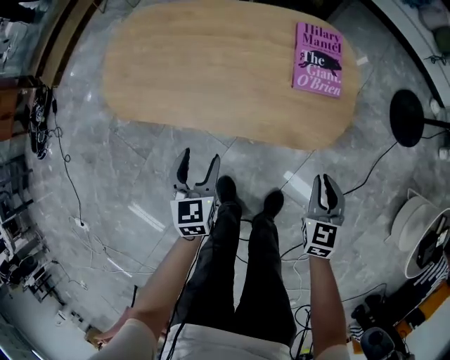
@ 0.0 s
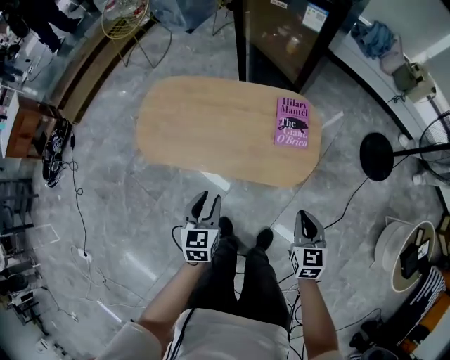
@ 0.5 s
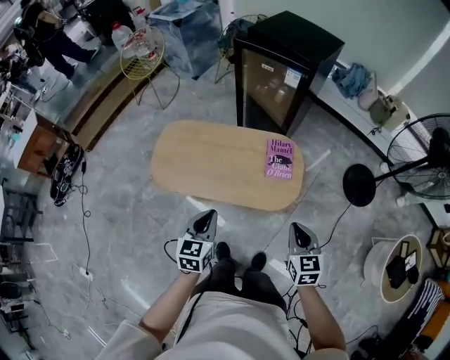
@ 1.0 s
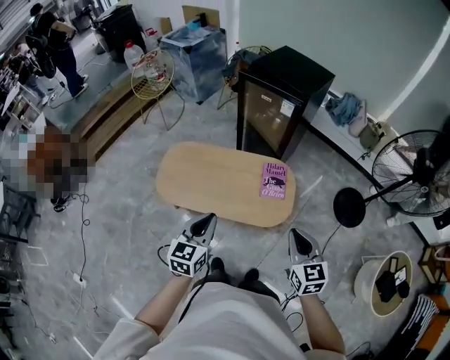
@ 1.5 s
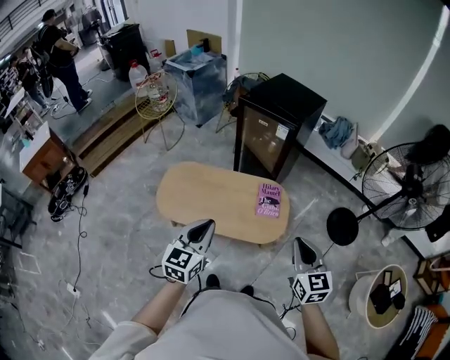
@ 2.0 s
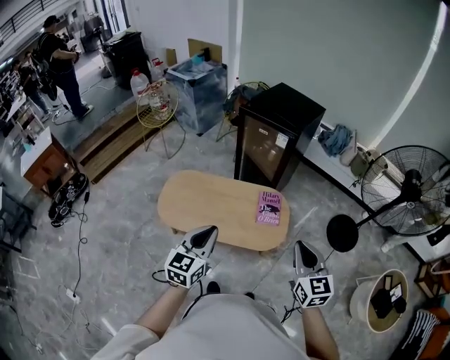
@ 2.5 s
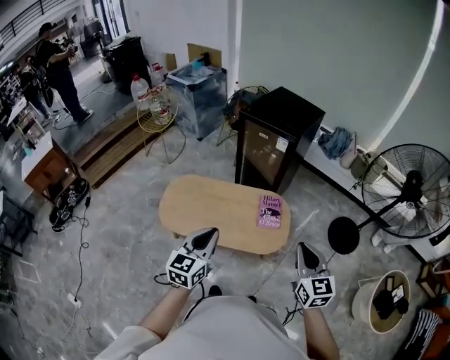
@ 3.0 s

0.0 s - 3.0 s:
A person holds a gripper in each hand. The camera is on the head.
0.0 s - 1.5 s: The two grippers go approximately 50 cm upward. The right gripper rotates about 20 degrees. The left gripper rotates approximately 20 degrees, and closes up.
1.5 s - 3.0 s: The grippers both shift upward by approximately 10 cm.

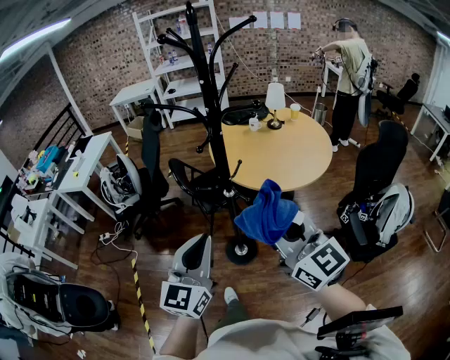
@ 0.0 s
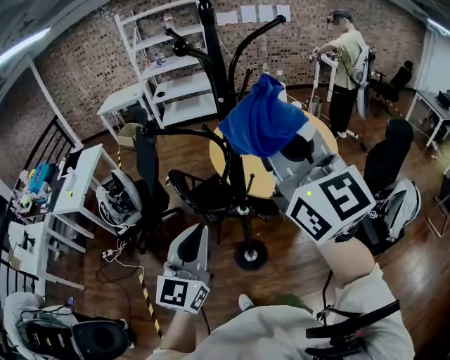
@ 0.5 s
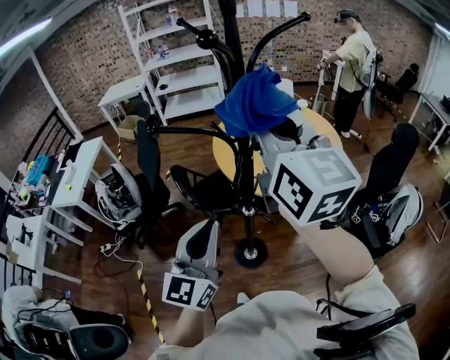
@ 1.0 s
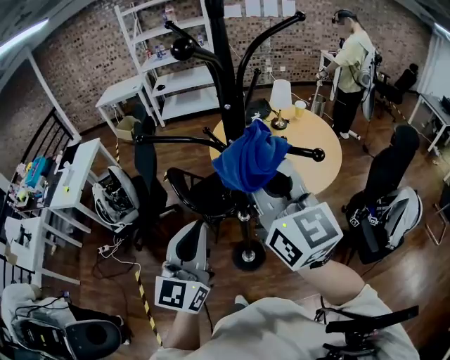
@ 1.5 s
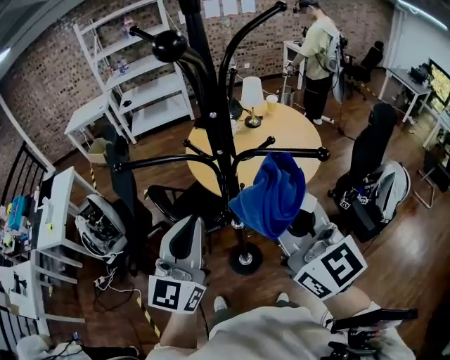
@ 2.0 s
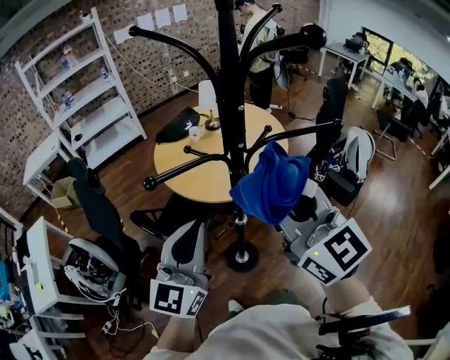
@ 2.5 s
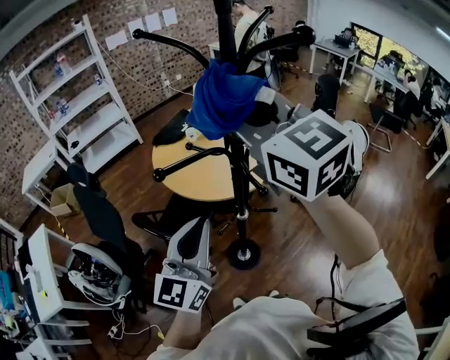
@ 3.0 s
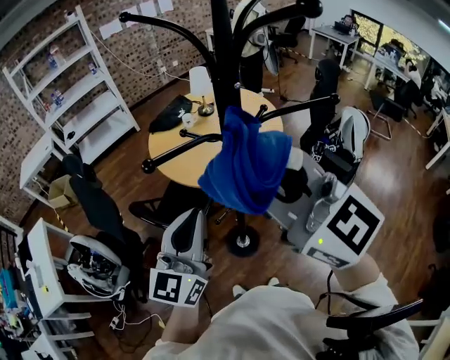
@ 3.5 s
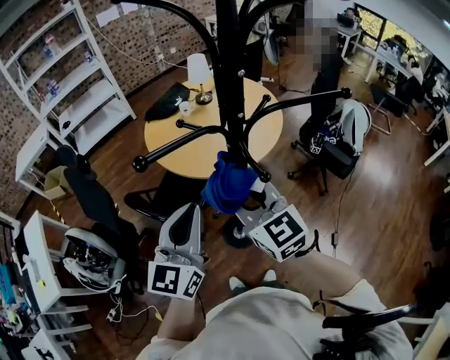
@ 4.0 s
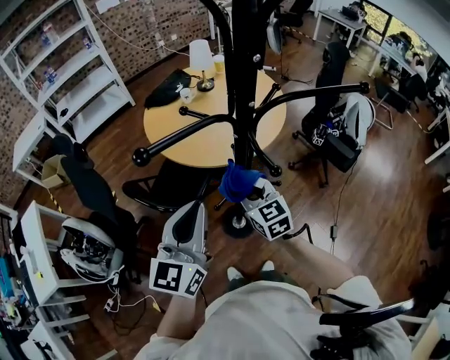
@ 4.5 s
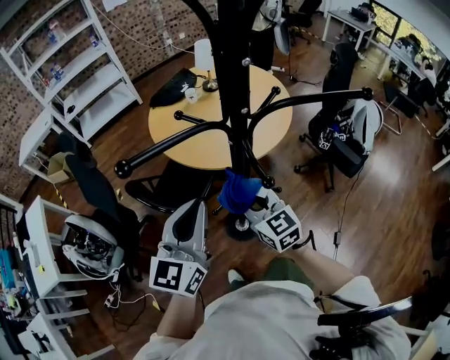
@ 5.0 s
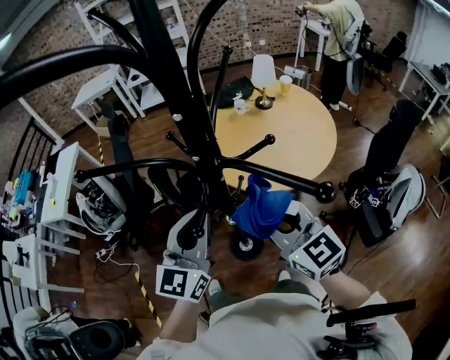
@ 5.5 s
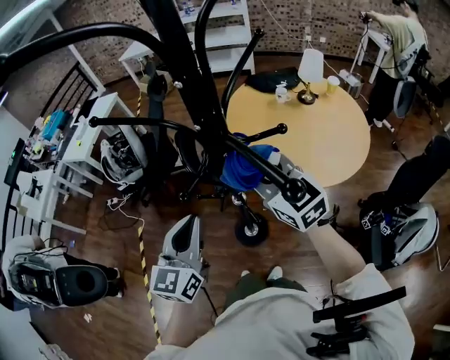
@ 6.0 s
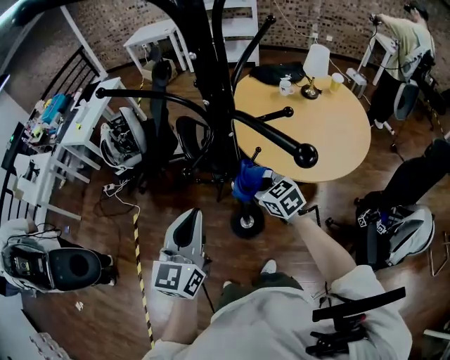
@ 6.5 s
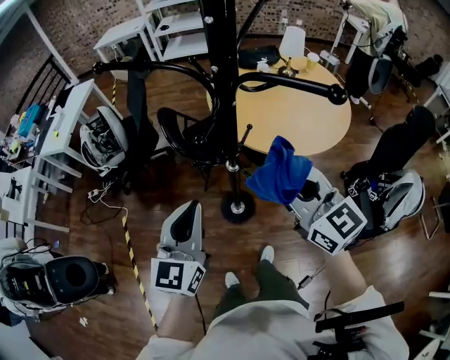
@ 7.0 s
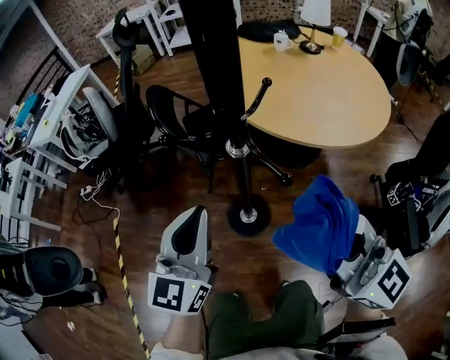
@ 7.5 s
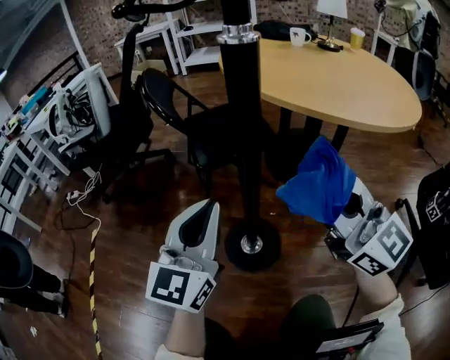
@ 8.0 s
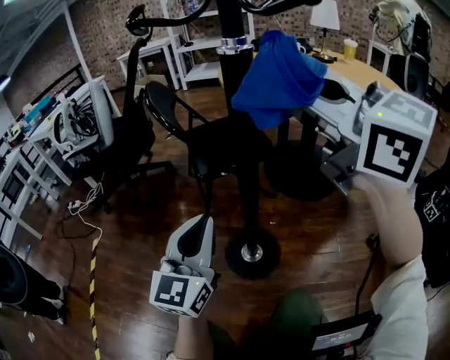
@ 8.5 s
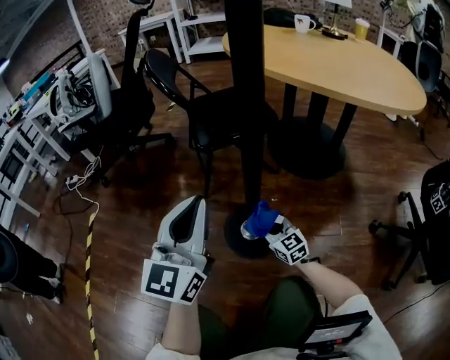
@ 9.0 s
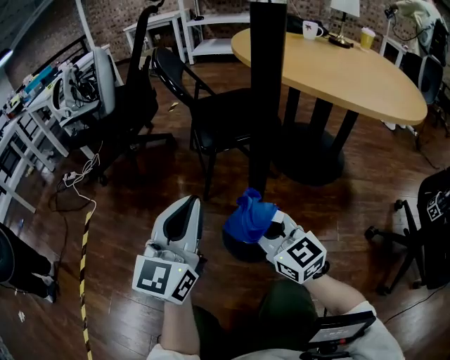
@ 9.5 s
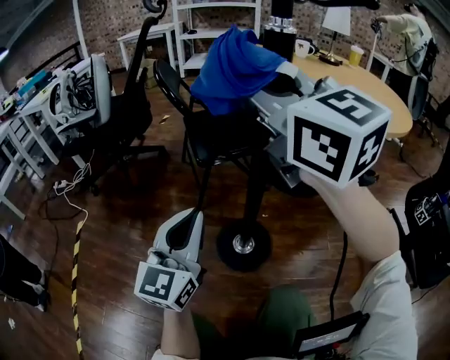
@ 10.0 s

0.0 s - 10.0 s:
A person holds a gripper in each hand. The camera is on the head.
0.0 s - 2.0 s: The left gripper heads forward, covering some 25 cm, while the right gripper goes roughly 20 cm forward and to the left.
2.0 s - 4.0 s: The right gripper is displaced to the left and downward by about 20 cm, and turns by roughly 20 degrees. The left gripper goes some 5 cm to the left, and turns by about 20 degrees.
4.0 s - 6.0 s: The left gripper changes place by approximately 15 cm, and changes its angle by roughly 50 degrees; the right gripper goes downward and returns, some 15 cm each way, and changes its angle by some 50 degrees.
6.0 s - 8.0 s: The left gripper shifts some 50 cm downward, while the right gripper swings up and down, about 50 cm each way, with 2 reversals, and turns by approximately 20 degrees.
8.0 s - 10.0 s: The left gripper is displaced to the left and downward by approximately 10 cm. The right gripper goes up and down, roughly 60 cm each way, reversing 2 times.

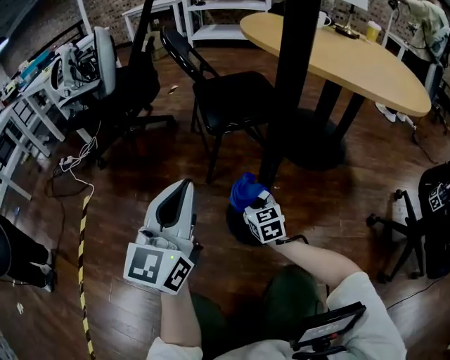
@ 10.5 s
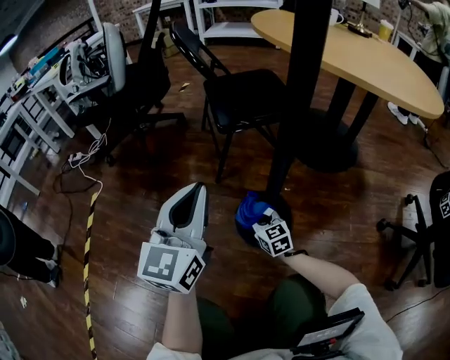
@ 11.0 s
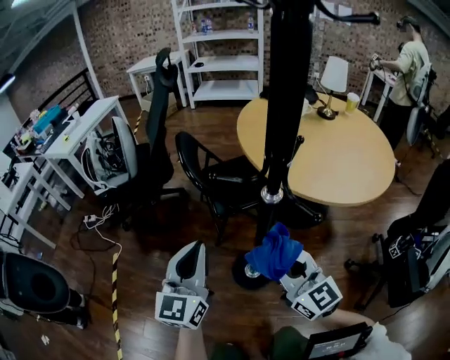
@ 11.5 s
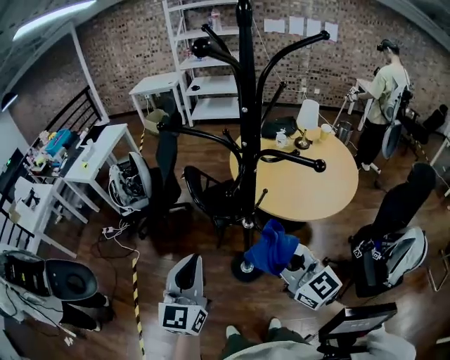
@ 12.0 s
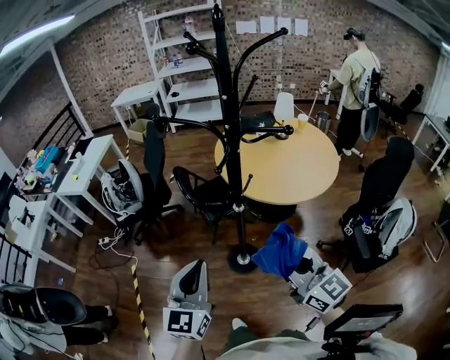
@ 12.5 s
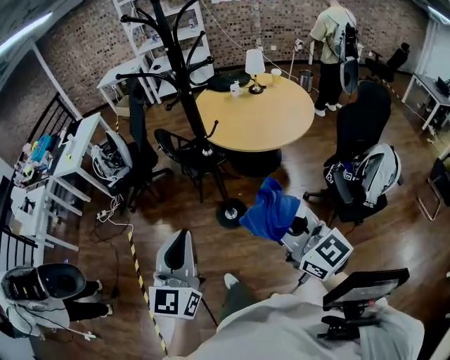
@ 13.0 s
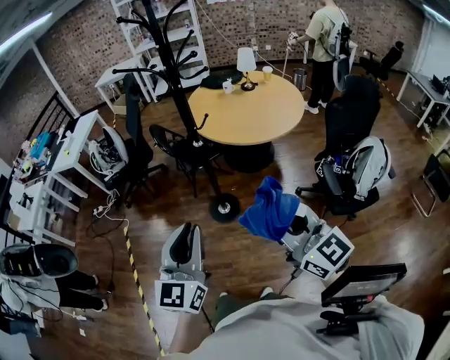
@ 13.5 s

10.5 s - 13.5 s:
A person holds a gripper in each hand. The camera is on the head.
10.5 s - 12.0 s: The grippers both shift upward by approximately 70 cm. The right gripper swivels roughly 30 degrees.
12.0 s - 13.5 s: The grippers both shift backward by about 30 cm.

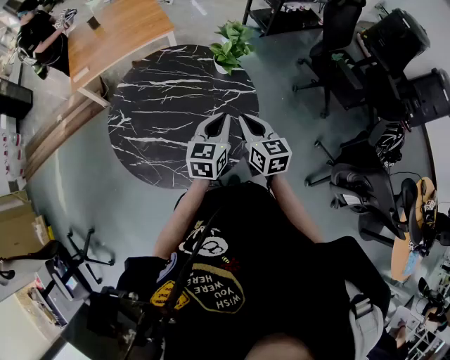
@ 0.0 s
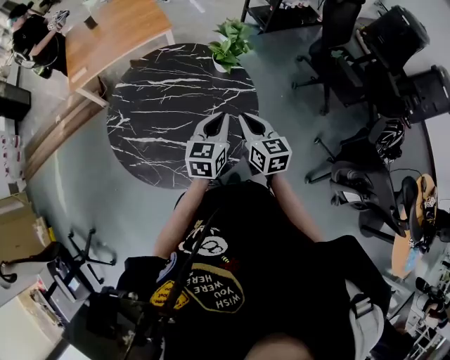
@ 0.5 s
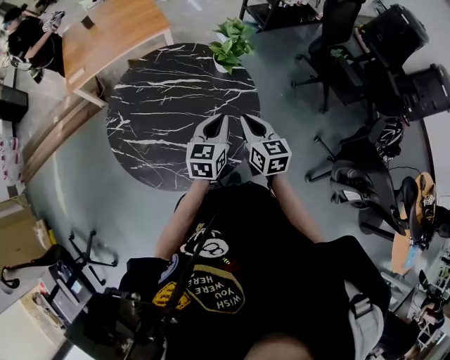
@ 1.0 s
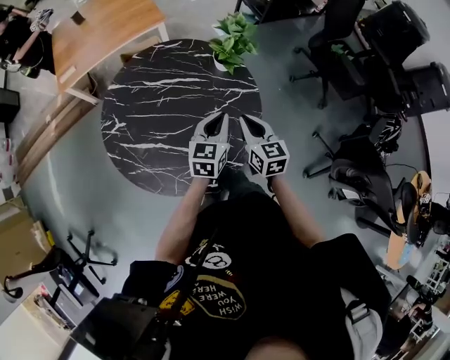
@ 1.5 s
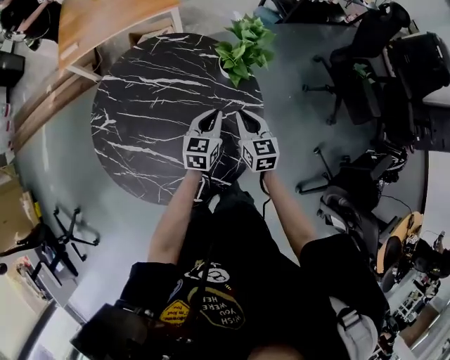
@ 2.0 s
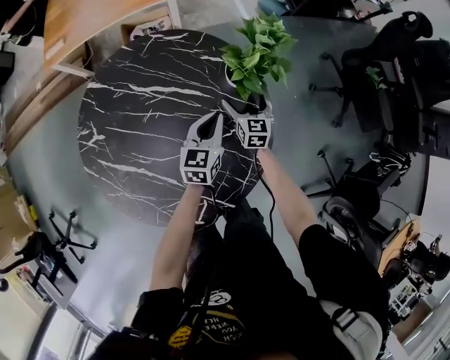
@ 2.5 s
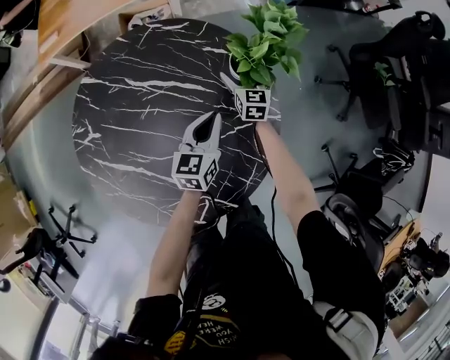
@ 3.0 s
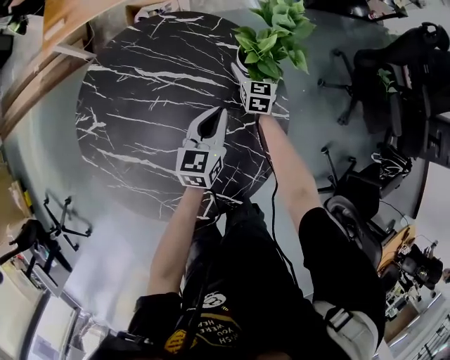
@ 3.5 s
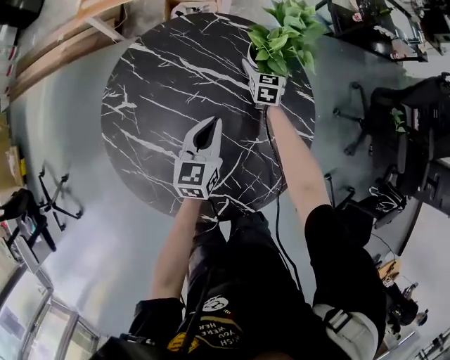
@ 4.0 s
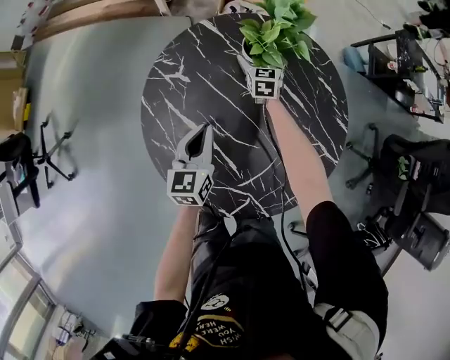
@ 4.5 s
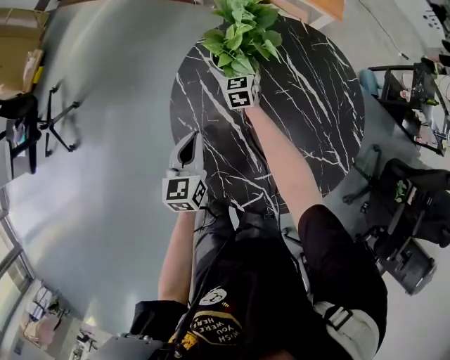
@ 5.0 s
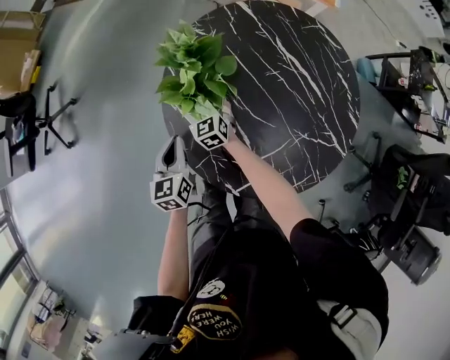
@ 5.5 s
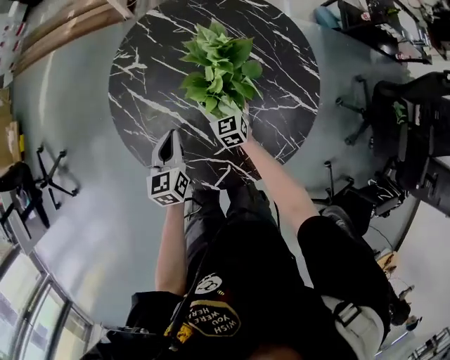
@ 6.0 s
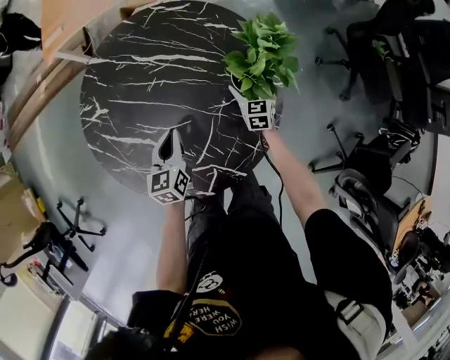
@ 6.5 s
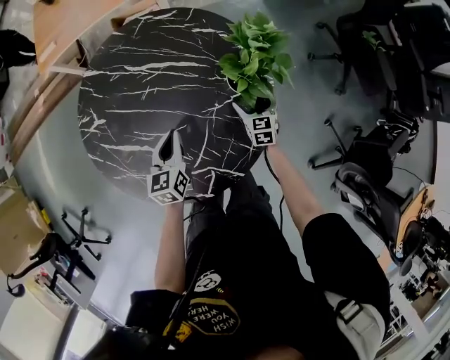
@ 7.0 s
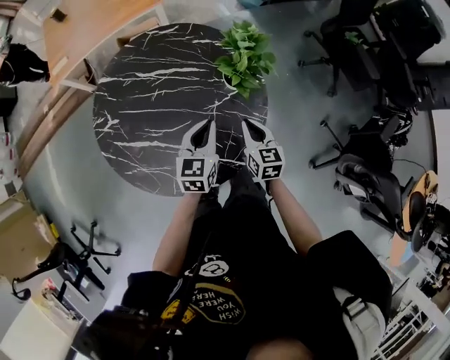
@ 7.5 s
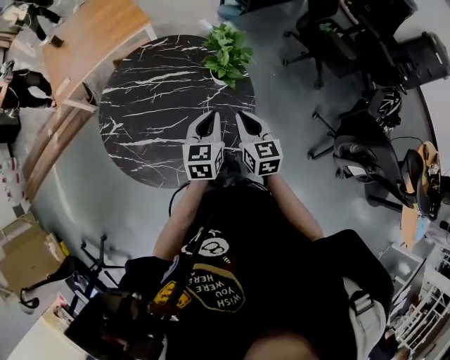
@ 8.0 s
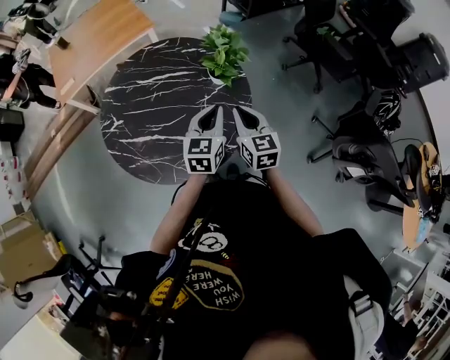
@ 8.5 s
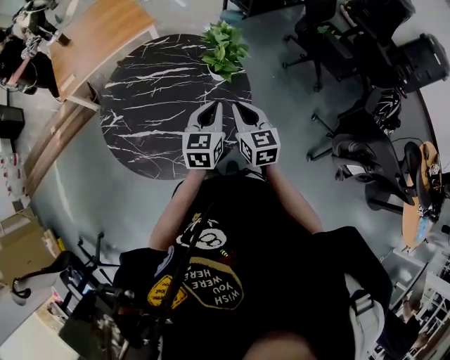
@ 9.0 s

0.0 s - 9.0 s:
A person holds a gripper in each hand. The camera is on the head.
0.0 s - 2.0 s: Both grippers travel together forward and downward, approximately 25 cm.
2.0 s - 4.5 s: The right gripper moves some 50 cm, turns by roughly 20 degrees, and opens its fingers. Meanwhile the left gripper shifts by some 35 cm, and turns by approximately 40 degrees.
4.5 s - 7.0 s: The right gripper shifts by roughly 50 cm, and changes its angle by approximately 20 degrees. The left gripper changes place by roughly 20 cm, and changes its angle by some 20 degrees.
7.0 s - 9.0 s: The right gripper moves upward and backward, about 40 cm, swivels approximately 20 degrees, and closes up, while the left gripper heads upward, to the right and backward, covering some 30 cm, and turns by some 30 degrees.

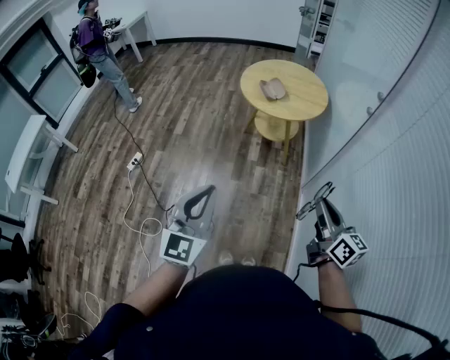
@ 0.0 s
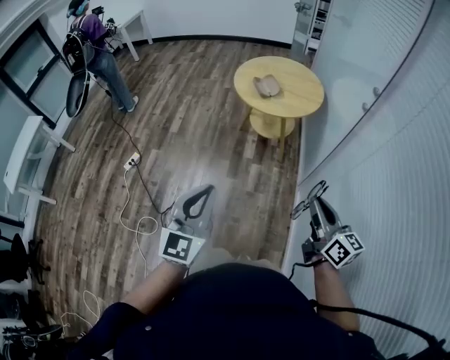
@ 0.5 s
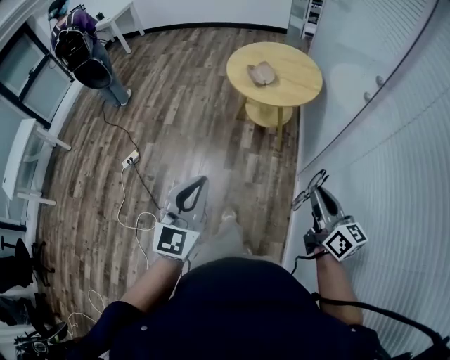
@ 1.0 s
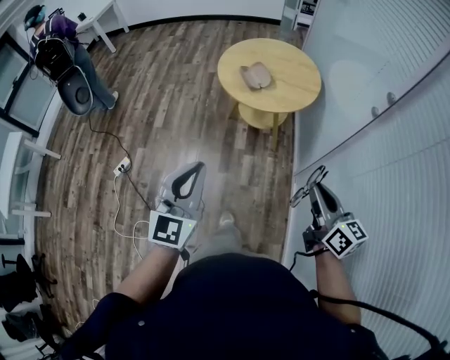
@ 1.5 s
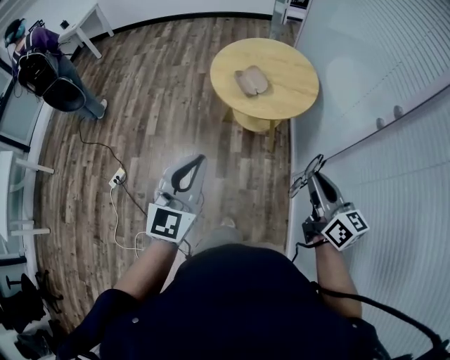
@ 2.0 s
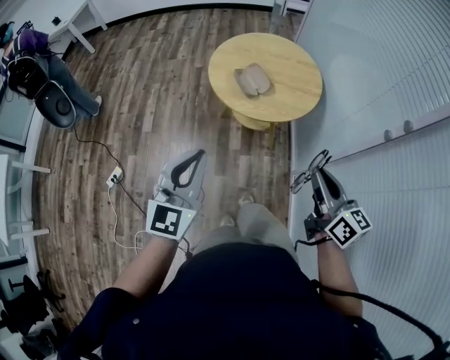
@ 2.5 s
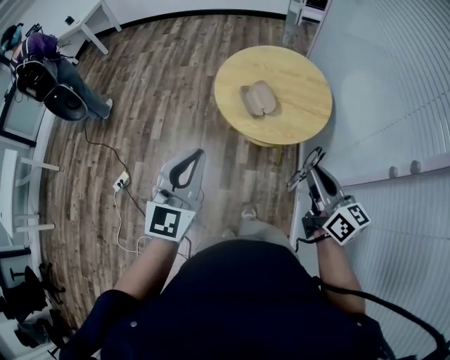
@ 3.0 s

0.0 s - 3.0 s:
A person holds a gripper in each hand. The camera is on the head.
0.0 s - 1.5 s: Both grippers travel together forward, approximately 20 cm.
1.5 s - 3.0 s: Both grippers move forward, roughly 25 cm.
